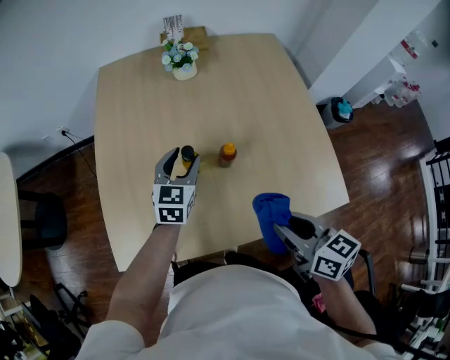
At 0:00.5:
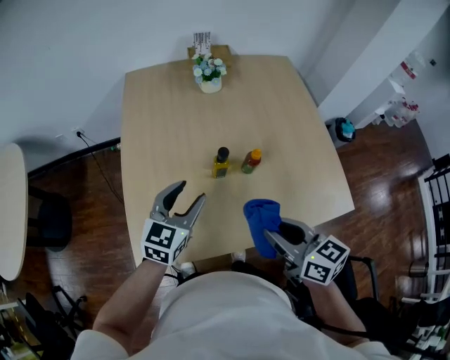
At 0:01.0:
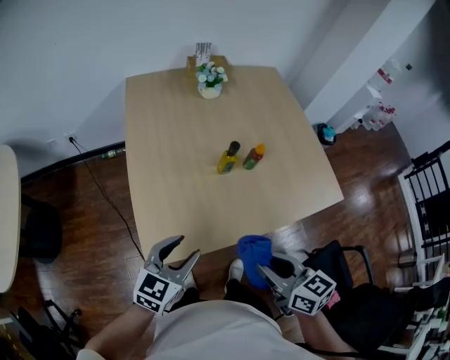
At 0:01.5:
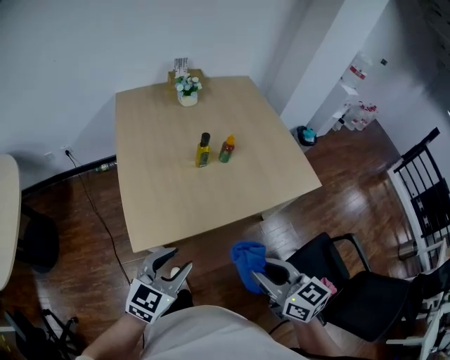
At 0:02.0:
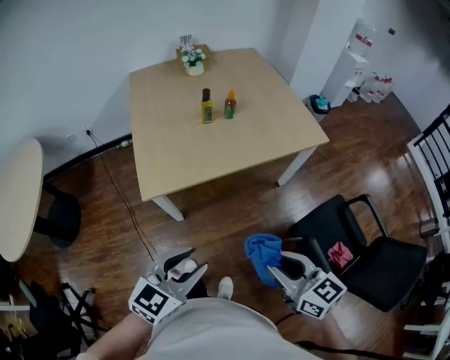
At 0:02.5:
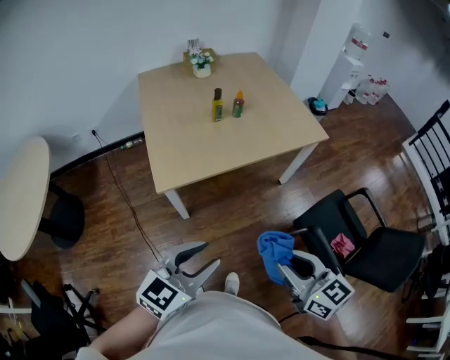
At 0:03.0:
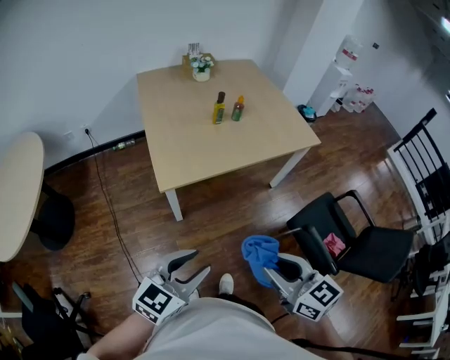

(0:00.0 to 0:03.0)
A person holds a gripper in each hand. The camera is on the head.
0:00.0 - 0:01.5: The left gripper is displaced backward by some 40 cm, and changes its angle by roughly 30 degrees, while the right gripper heads backward and to the left, covering approximately 35 cm.
0:01.5 - 0:03.0: Both grippers move backward, about 25 cm.

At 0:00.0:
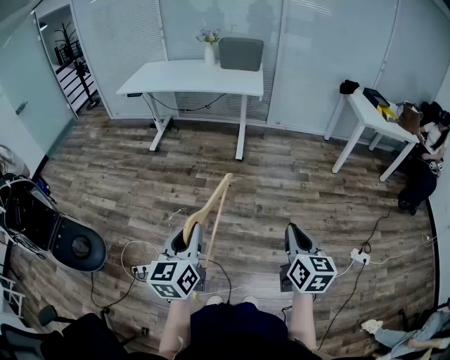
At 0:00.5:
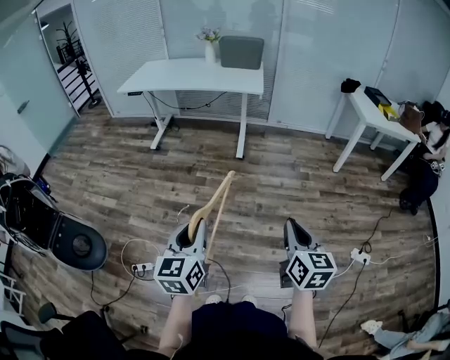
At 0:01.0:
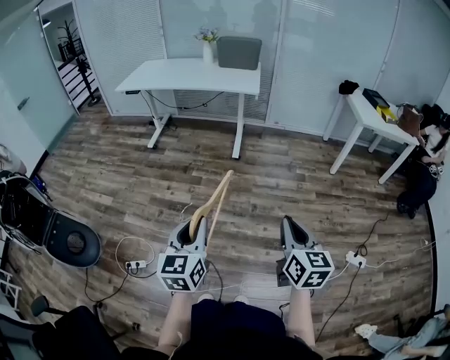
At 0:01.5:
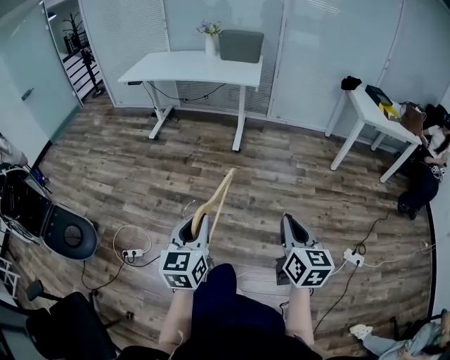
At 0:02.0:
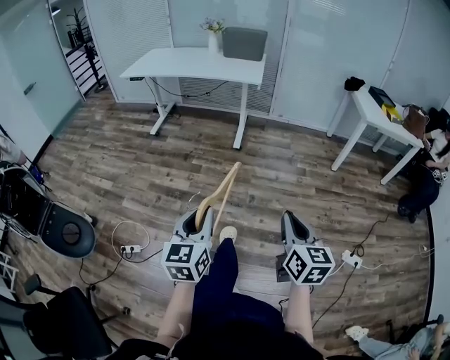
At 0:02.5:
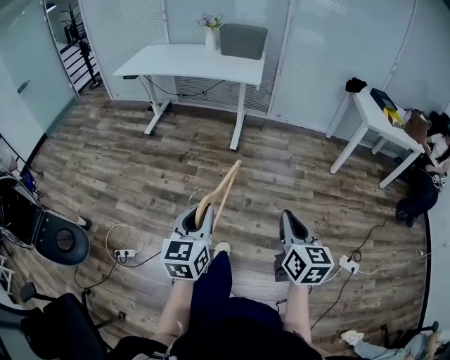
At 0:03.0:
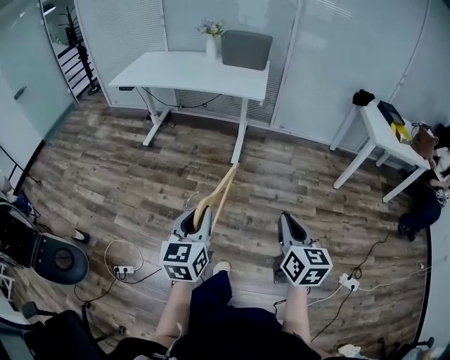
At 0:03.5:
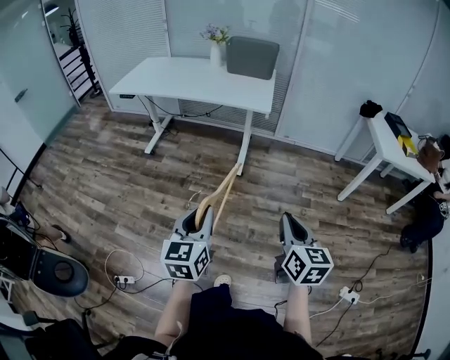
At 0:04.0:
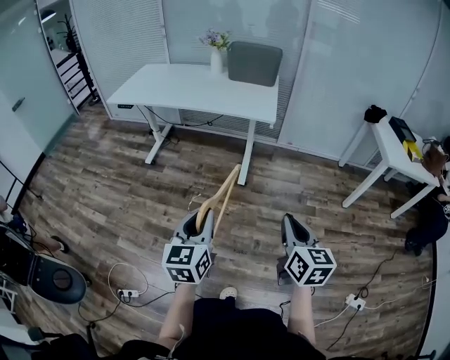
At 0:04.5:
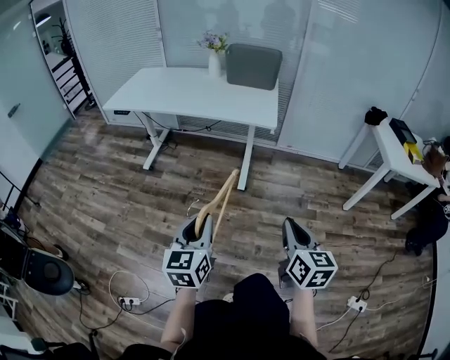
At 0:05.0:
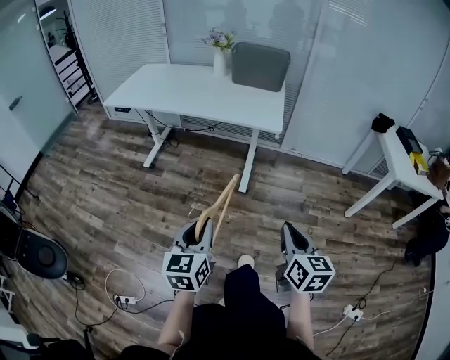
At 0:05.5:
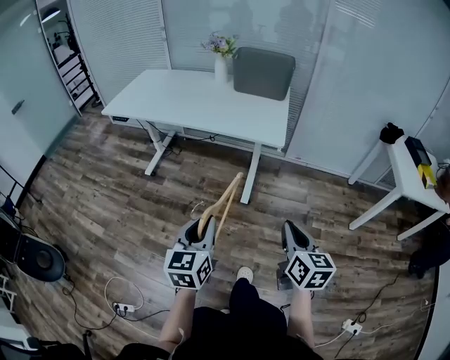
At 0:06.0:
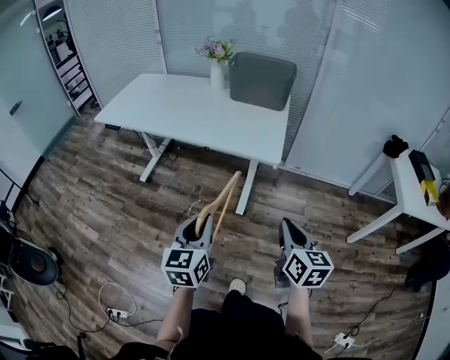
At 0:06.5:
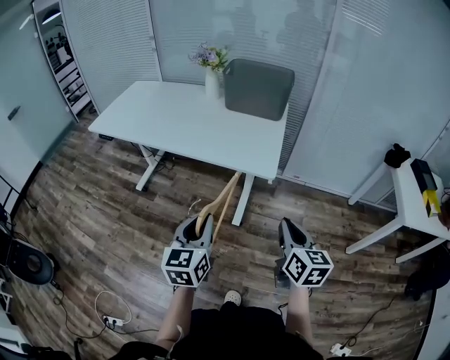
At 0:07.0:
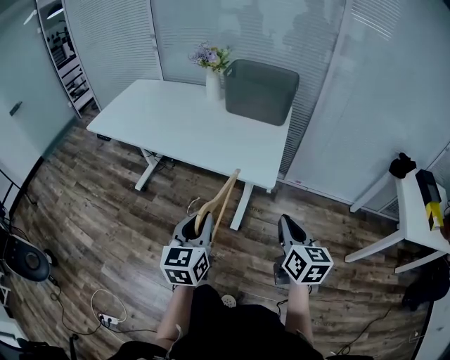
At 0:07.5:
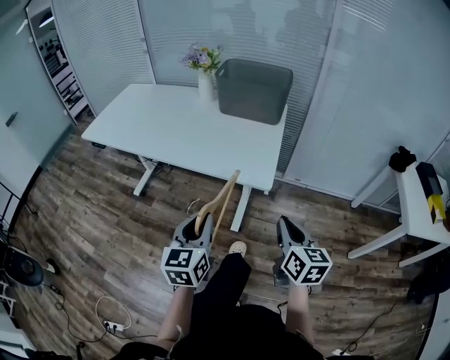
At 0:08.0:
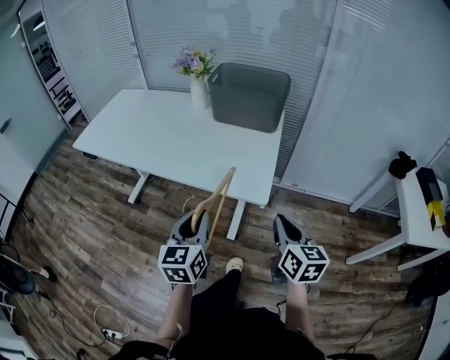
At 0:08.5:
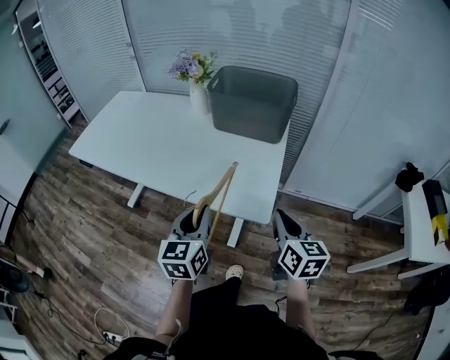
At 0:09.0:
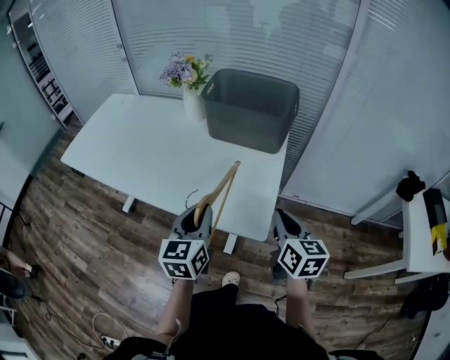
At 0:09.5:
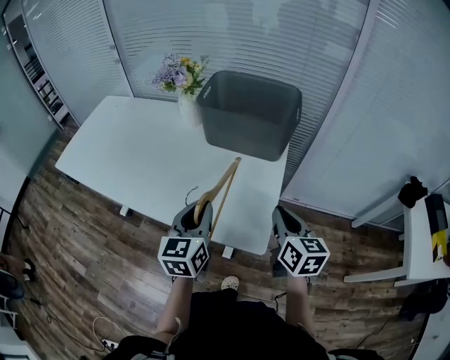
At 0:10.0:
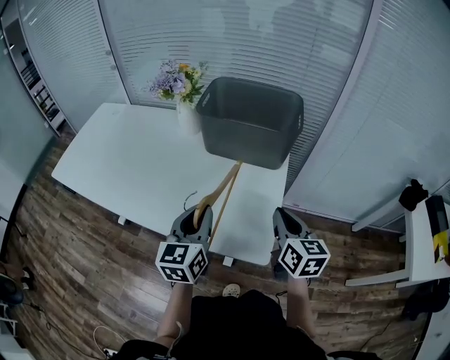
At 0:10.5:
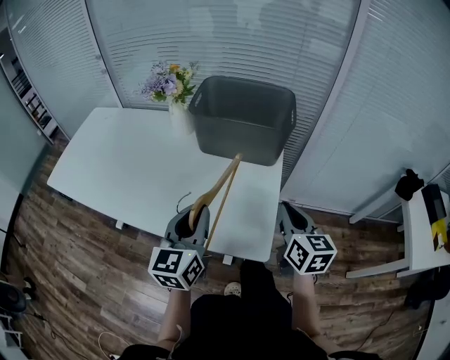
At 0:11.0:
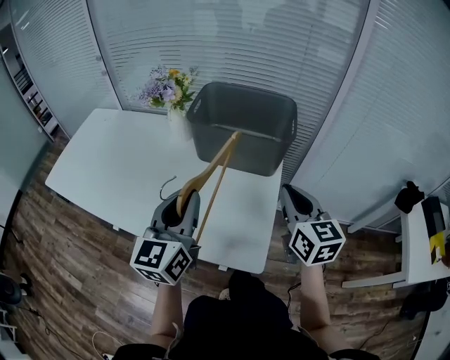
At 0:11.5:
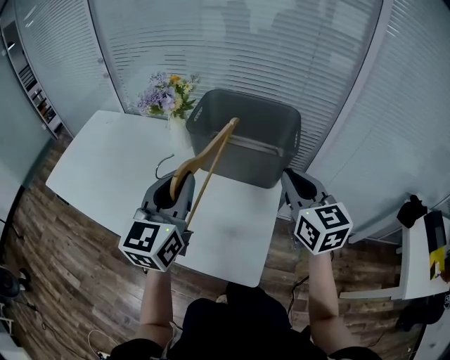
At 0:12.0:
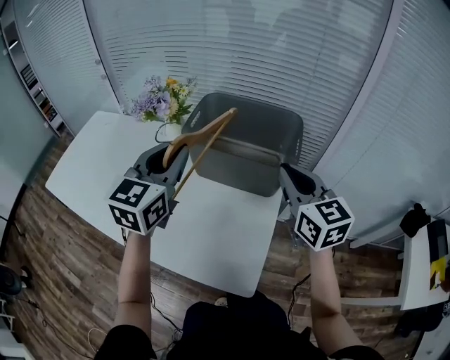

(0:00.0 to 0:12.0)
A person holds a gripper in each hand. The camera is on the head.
0:00.0 - 0:02.0: The right gripper shifts approximately 10 cm to the right, while the left gripper heads to the right, covering roughly 15 cm.
0:02.0 - 0:04.0: Both grippers move forward, roughly 35 cm.
0:04.0 - 0:06.0: Both grippers travel together forward, approximately 25 cm.
0:06.0 - 0:08.0: Both grippers travel together forward, approximately 20 cm.
0:08.0 - 0:10.0: Both grippers move forward, roughly 25 cm.
0:10.0 - 0:12.0: The two grippers go roughly 25 cm forward and upward. The right gripper swivels approximately 20 degrees.

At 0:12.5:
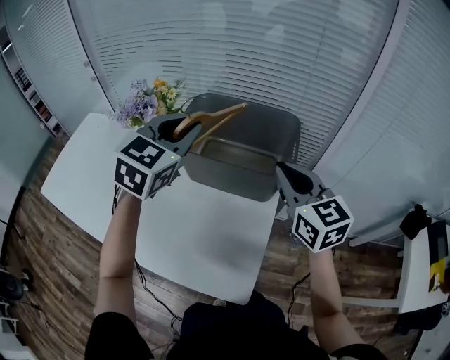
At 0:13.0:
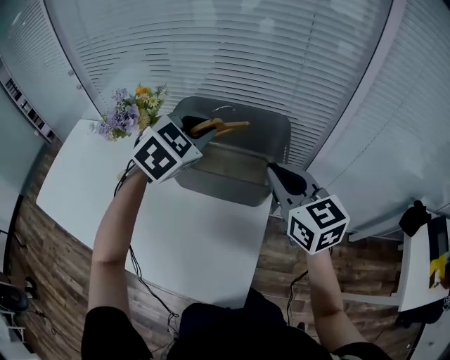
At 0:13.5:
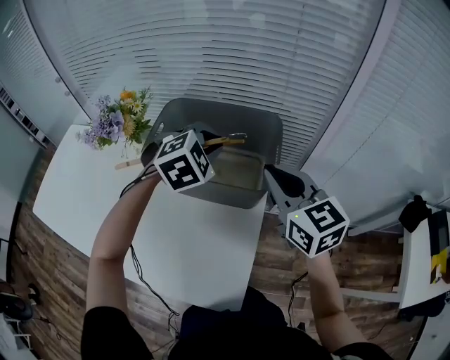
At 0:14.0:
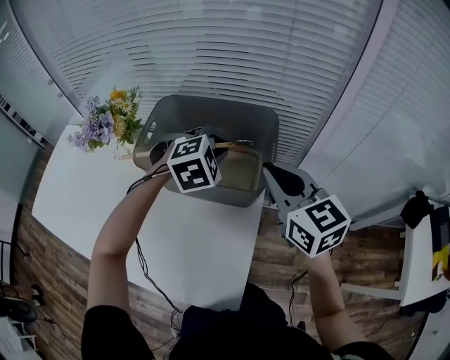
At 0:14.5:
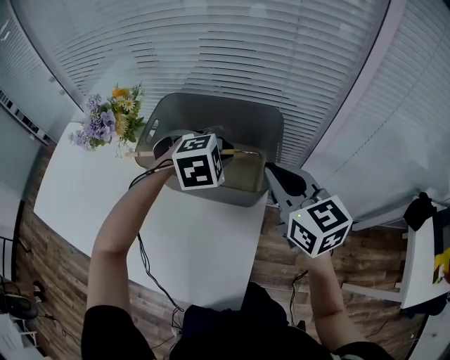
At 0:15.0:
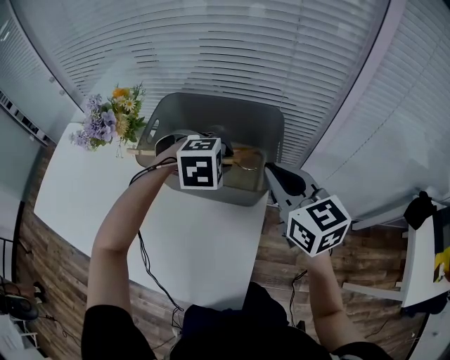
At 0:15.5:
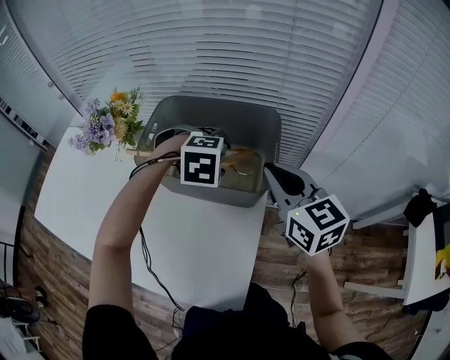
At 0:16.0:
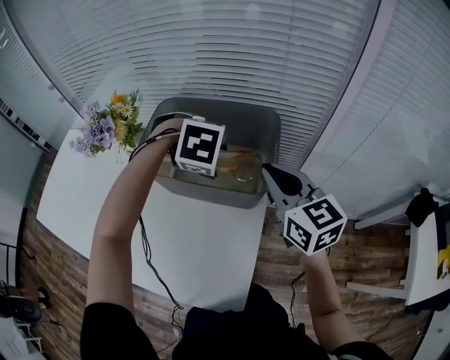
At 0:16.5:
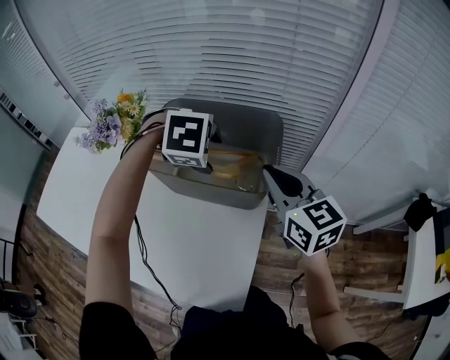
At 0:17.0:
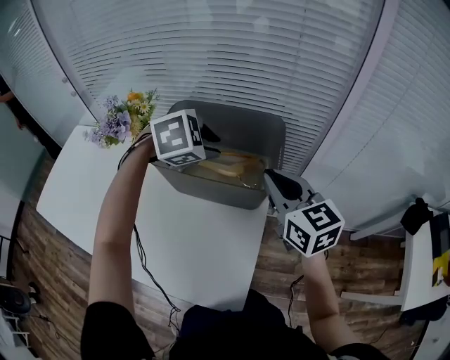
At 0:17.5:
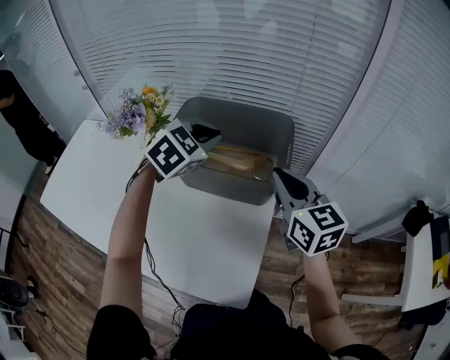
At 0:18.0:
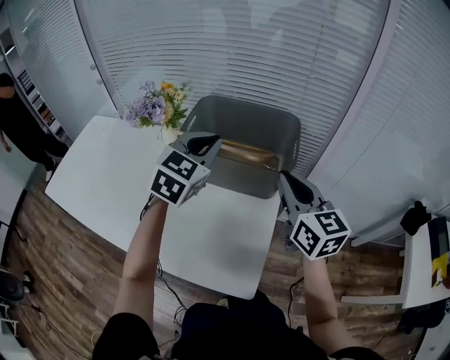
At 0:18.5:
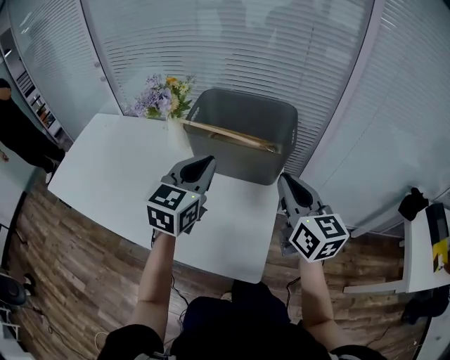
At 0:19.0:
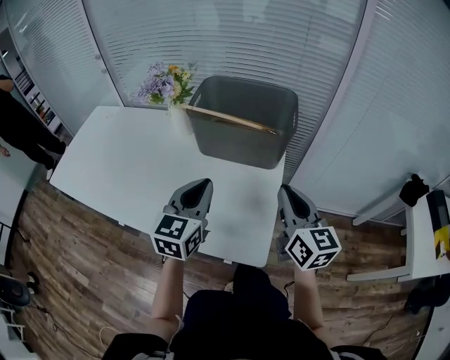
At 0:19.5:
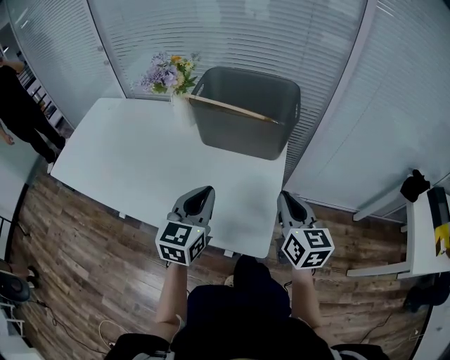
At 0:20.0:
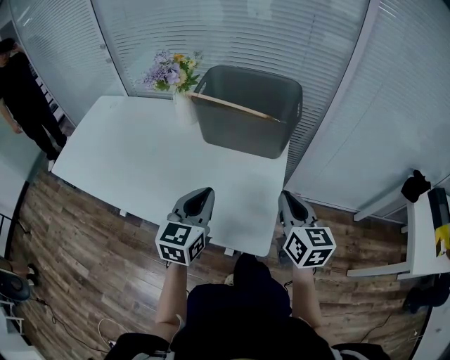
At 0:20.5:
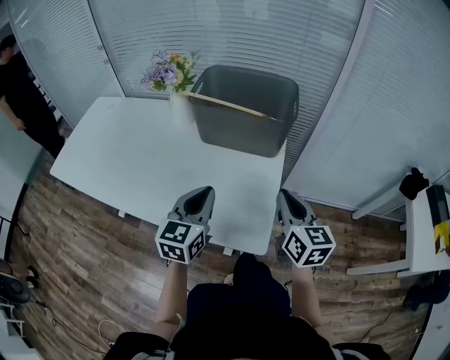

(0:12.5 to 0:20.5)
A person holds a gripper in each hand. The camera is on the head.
0:12.5 - 0:14.5: The right gripper moves forward, about 5 cm. The left gripper shifts some 25 cm downward, to the right and forward, and tilts its fingers approximately 40 degrees downward.
0:14.5 - 0:16.5: The left gripper ends up roughly 5 cm from where it was, turns by approximately 20 degrees, and opens.
0:16.5 - 0:18.5: The right gripper changes place by about 15 cm, while the left gripper shifts by approximately 20 cm, points its fingers roughly 70 degrees further upward, and closes its fingers.
0:18.5 - 0:20.5: The left gripper shifts approximately 15 cm backward and downward, while the right gripper goes roughly 15 cm downward and backward.

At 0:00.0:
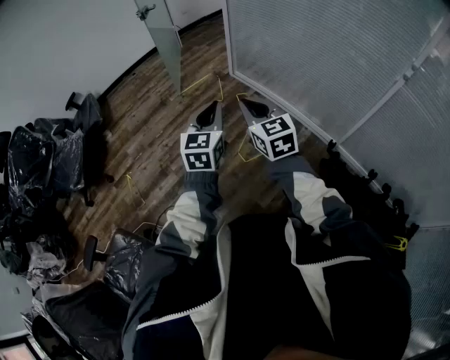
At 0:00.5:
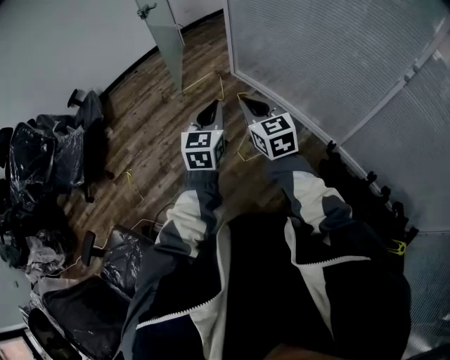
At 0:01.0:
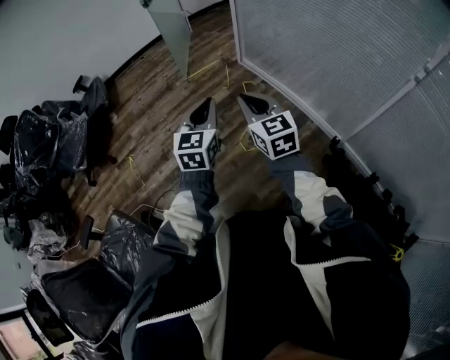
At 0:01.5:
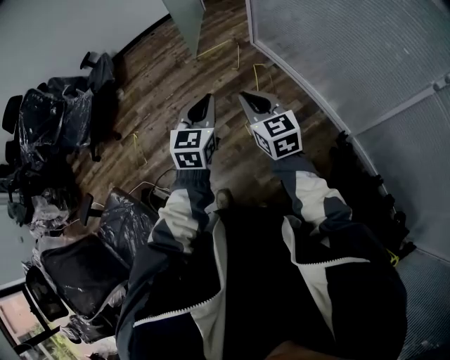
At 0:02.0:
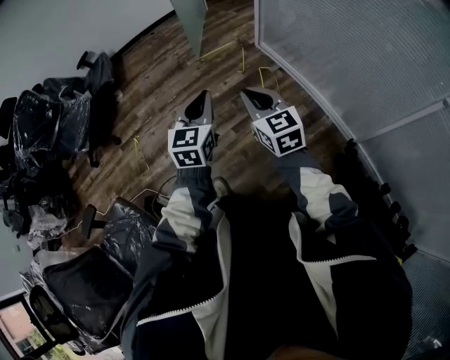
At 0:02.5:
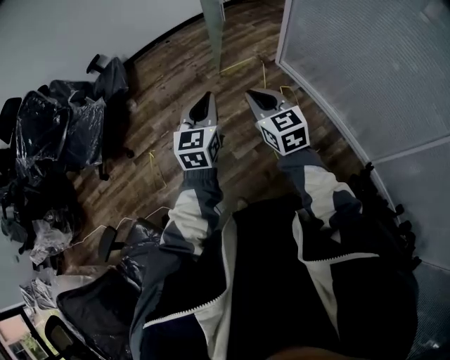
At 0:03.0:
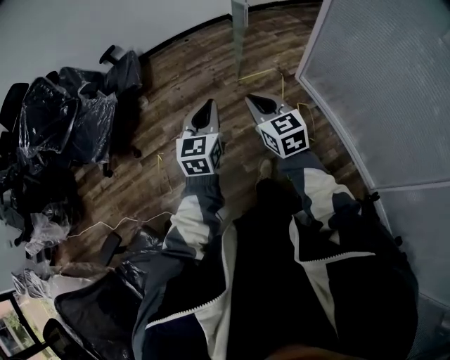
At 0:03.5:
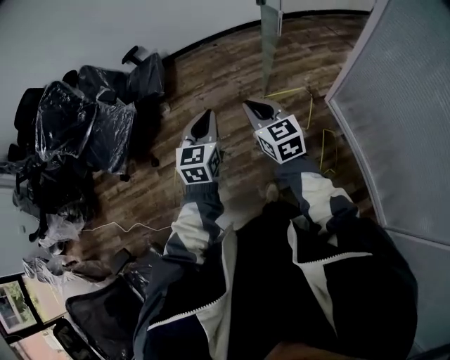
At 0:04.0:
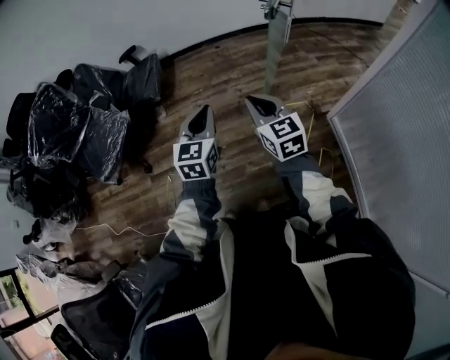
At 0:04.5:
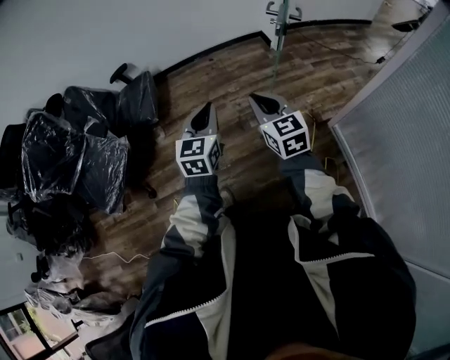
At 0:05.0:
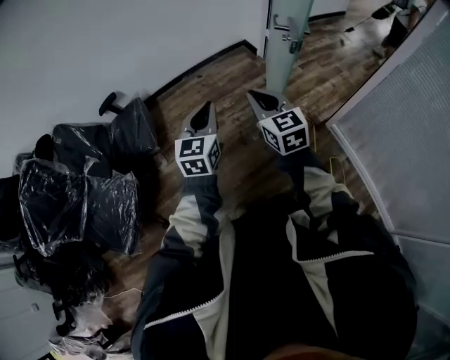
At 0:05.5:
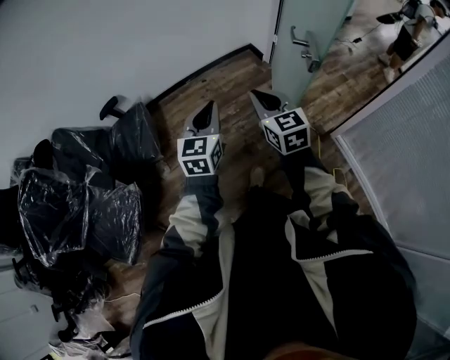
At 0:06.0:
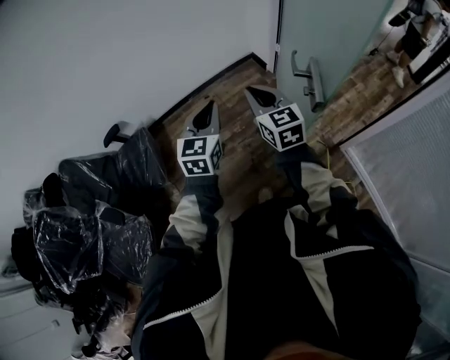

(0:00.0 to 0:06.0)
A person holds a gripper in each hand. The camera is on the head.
0:00.0 - 0:02.0: The left gripper travels to the left and downward by approximately 5 cm. The right gripper travels downward and forward by approximately 10 cm.
0:02.0 - 0:04.0: The two grippers travel together, forward, roughly 60 cm. The left gripper rotates about 20 degrees.
0:04.0 - 0:06.0: The pair of grippers is taken forward, approximately 50 cm.
